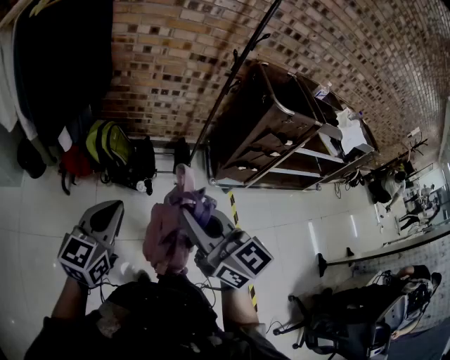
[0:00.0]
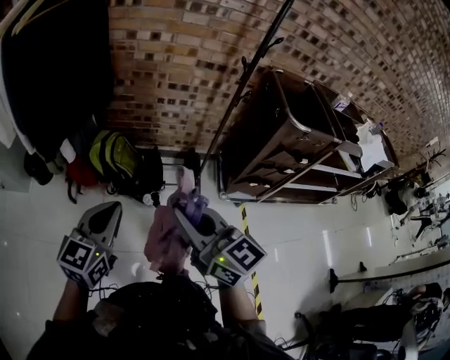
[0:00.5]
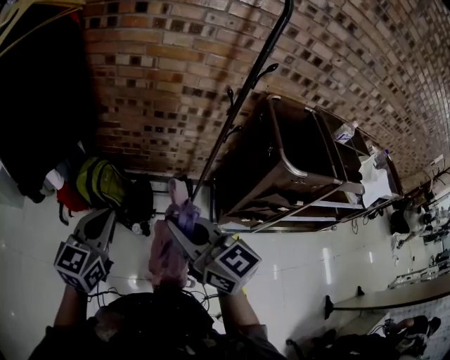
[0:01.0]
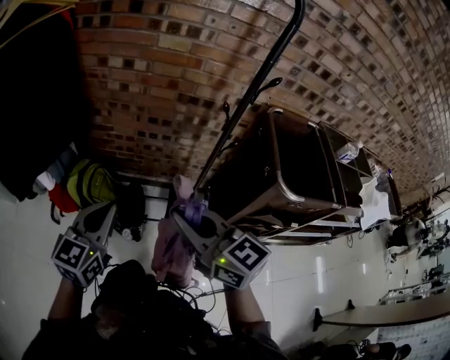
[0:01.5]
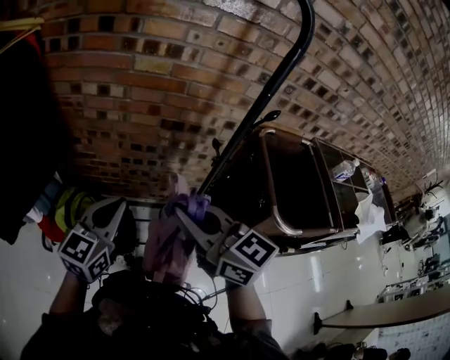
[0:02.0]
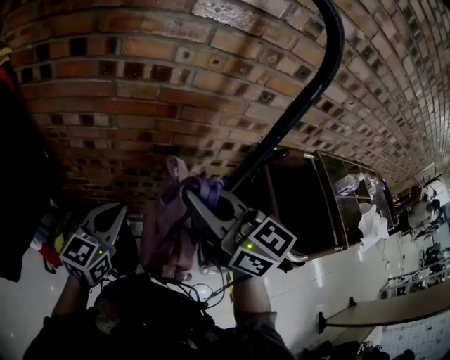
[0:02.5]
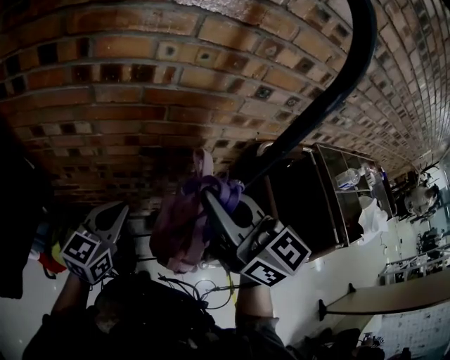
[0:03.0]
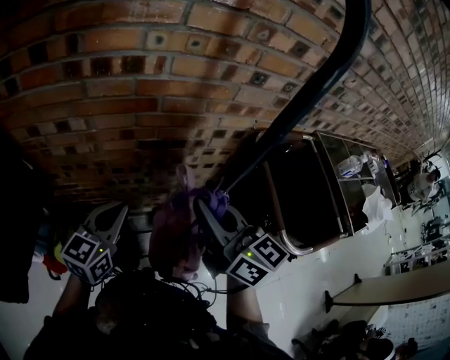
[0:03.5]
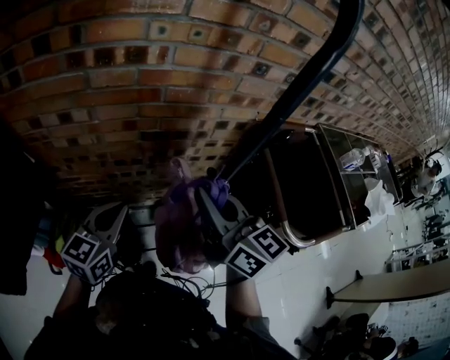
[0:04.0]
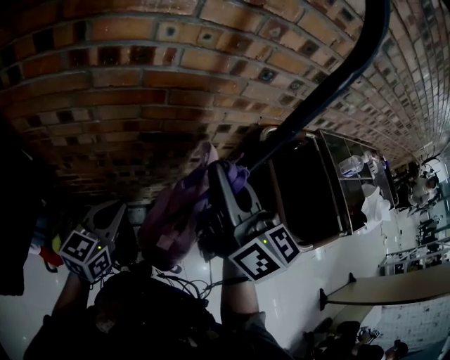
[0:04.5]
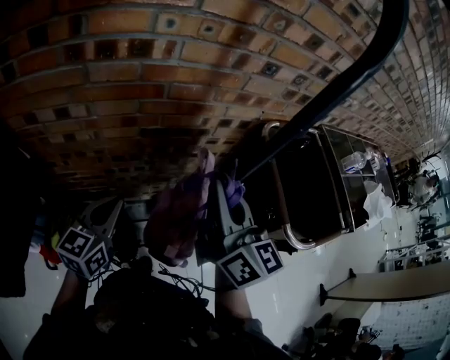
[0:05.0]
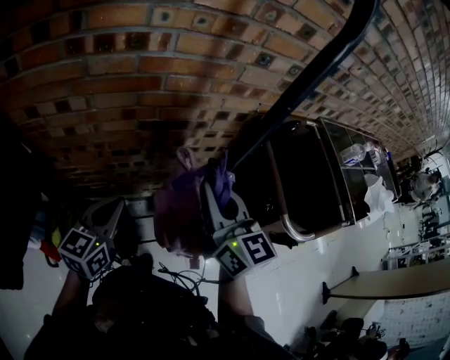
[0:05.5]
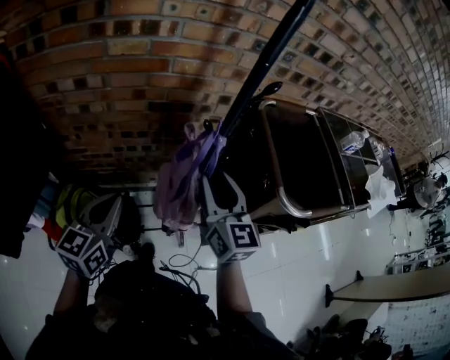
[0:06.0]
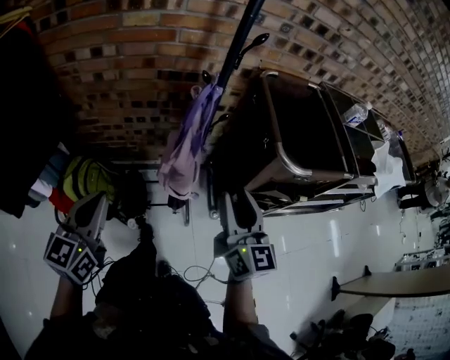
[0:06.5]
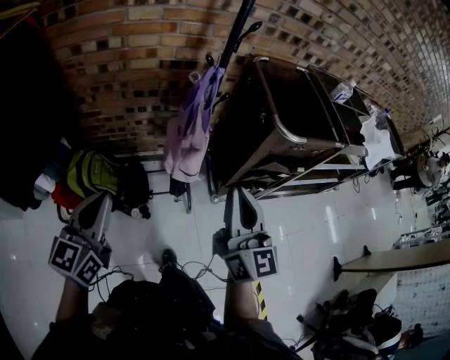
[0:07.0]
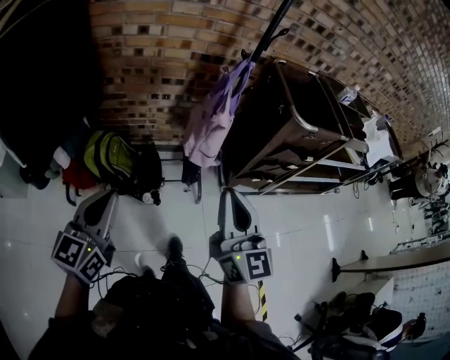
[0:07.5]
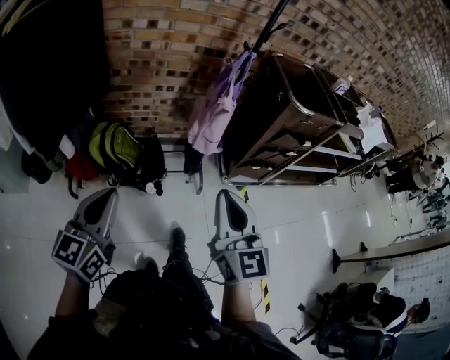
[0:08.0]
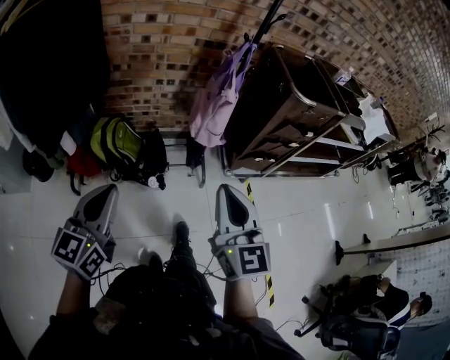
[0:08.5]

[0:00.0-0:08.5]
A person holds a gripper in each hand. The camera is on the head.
0:00.0 to 0:02.0: The two grippers travel together, forward and to the right, roughly 60 cm.
0:02.0 to 0:04.0: The right gripper shifts roughly 20 cm forward and to the right, and turns by some 30 degrees; the left gripper goes about 15 cm forward.
0:04.0 to 0:06.5: The left gripper goes some 25 cm backward, while the right gripper is displaced backward and to the right by approximately 30 cm, turns by some 20 degrees, and opens.
0:06.5 to 0:08.5: The right gripper heads backward and to the left, covering approximately 40 cm, and closes, while the left gripper travels backward by approximately 35 cm.

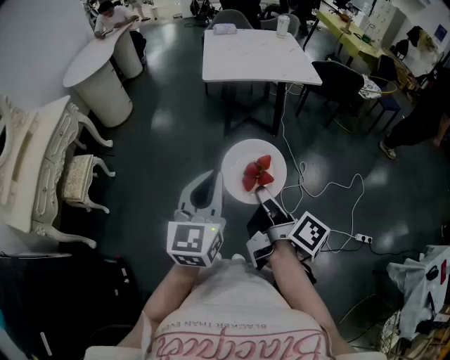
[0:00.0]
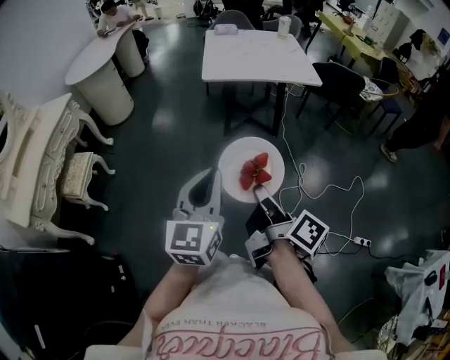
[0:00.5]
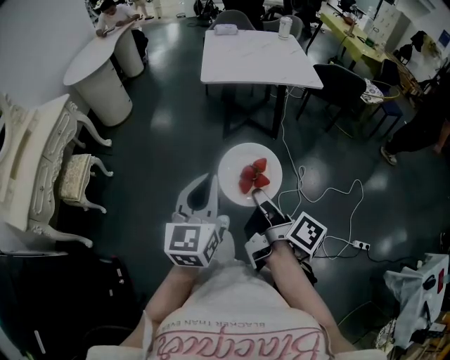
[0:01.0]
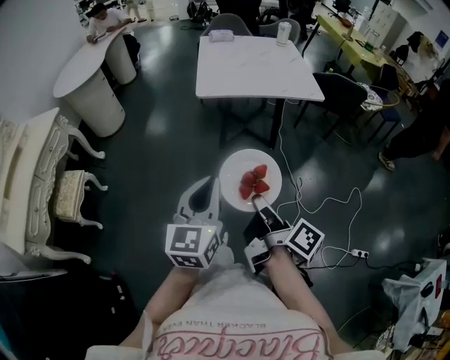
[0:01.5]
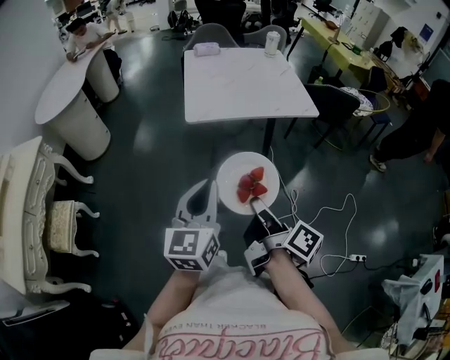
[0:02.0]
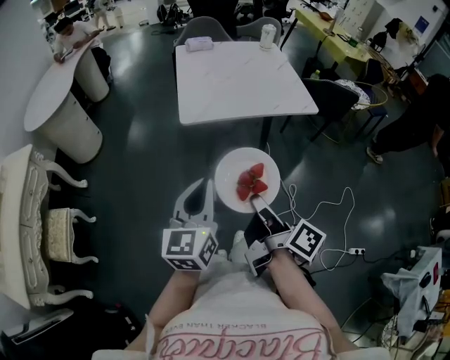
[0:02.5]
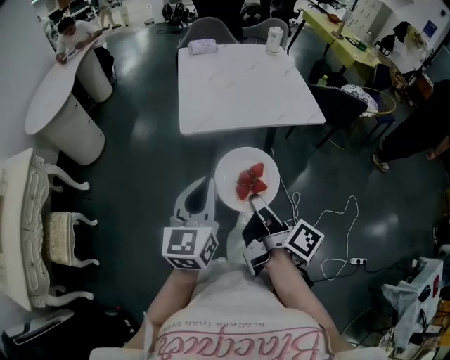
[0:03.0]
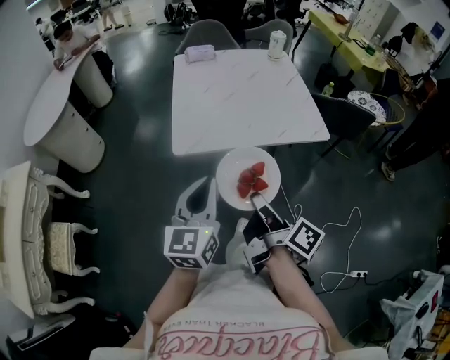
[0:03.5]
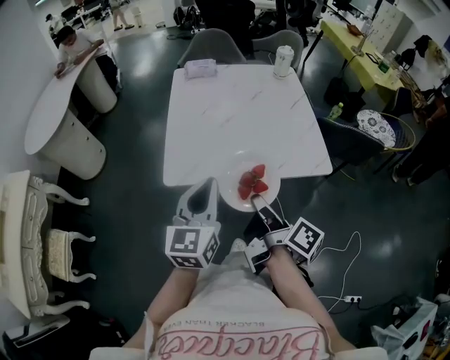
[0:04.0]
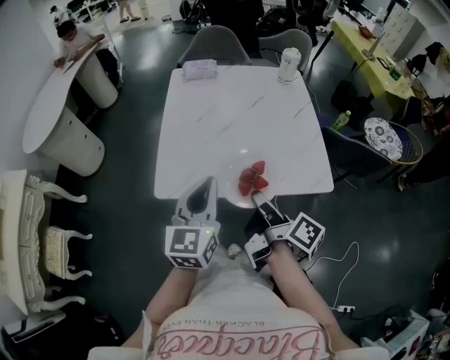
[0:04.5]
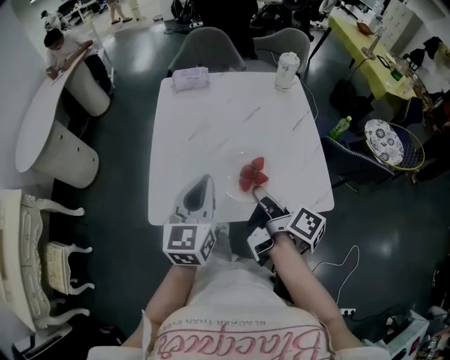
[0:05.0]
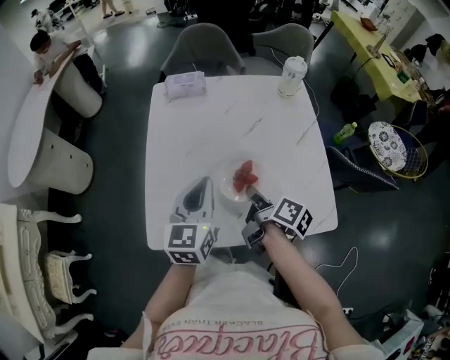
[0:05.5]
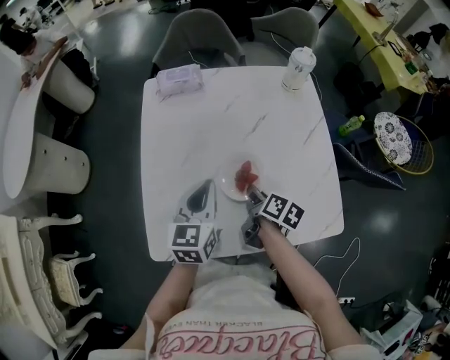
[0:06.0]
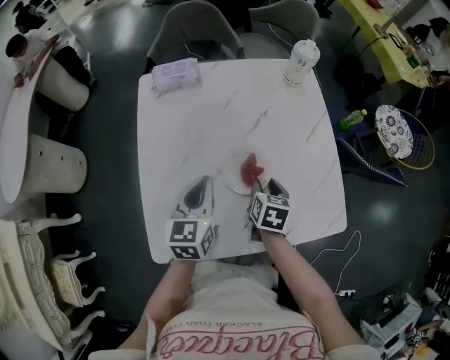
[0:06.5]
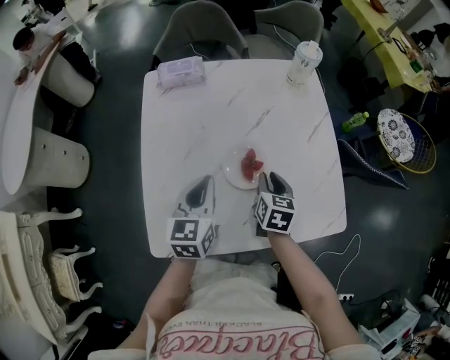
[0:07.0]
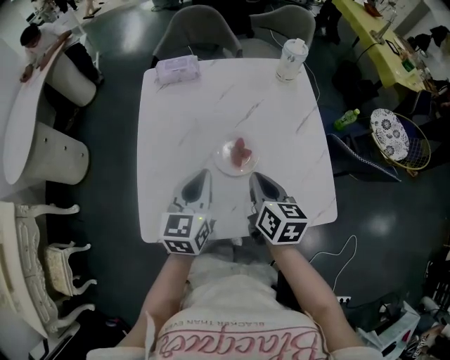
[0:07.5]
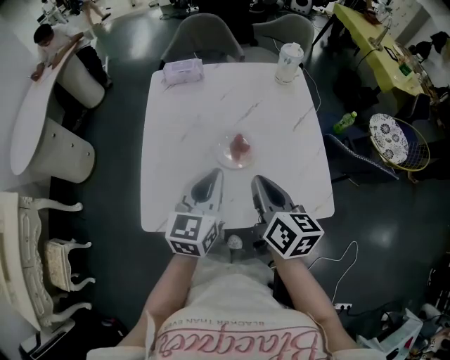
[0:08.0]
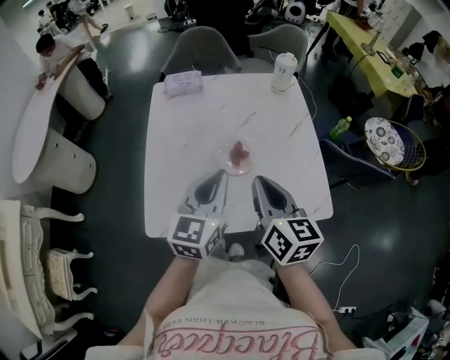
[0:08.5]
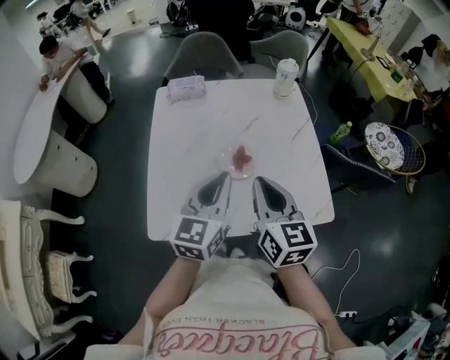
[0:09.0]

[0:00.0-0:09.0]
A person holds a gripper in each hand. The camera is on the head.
0:00.0 to 0:02.0: The grippers both shift forward by roughly 25 cm.
0:02.0 to 0:04.5: The pair of grippers is taken forward, about 50 cm.
0:04.5 to 0:07.0: Both grippers move forward and downward, approximately 35 cm. The right gripper twists approximately 60 degrees counterclockwise, seen from behind.
0:07.0 to 0:09.0: The left gripper shifts roughly 20 cm upward, backward and to the right, while the right gripper shifts approximately 25 cm upward and backward, and swivels some 30 degrees.

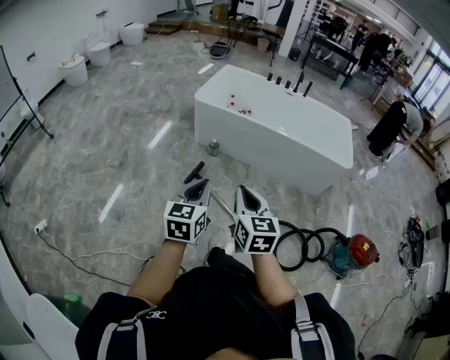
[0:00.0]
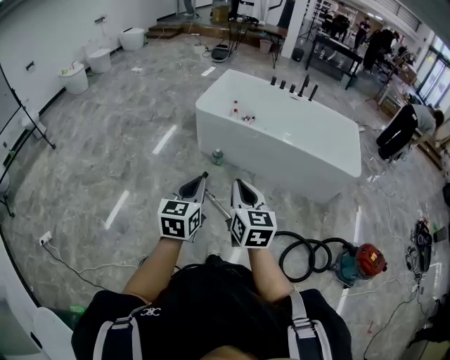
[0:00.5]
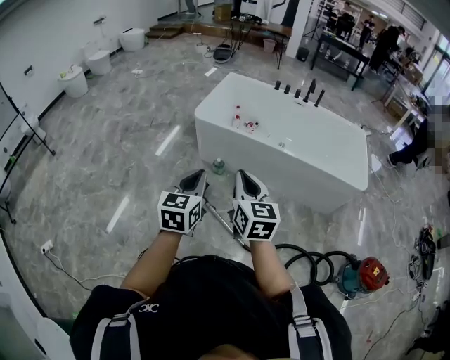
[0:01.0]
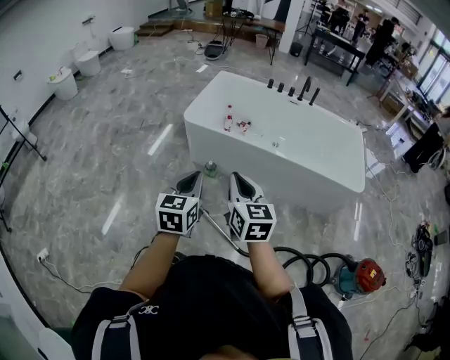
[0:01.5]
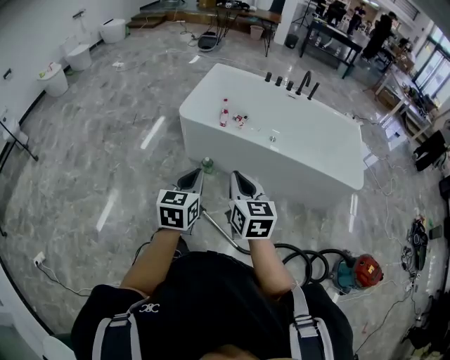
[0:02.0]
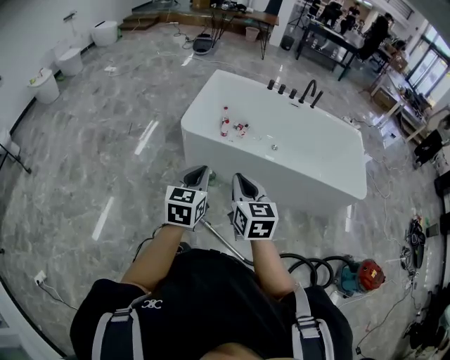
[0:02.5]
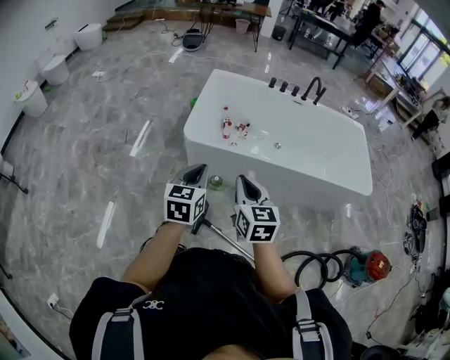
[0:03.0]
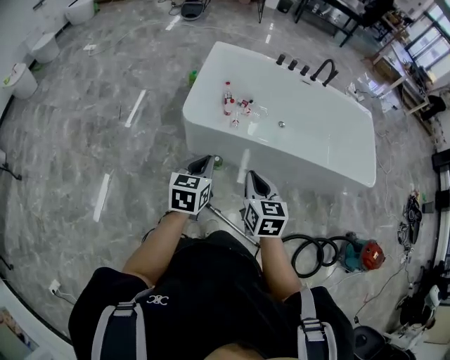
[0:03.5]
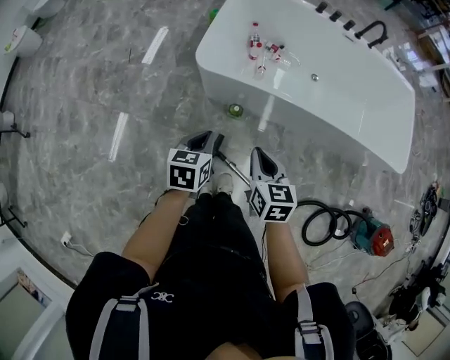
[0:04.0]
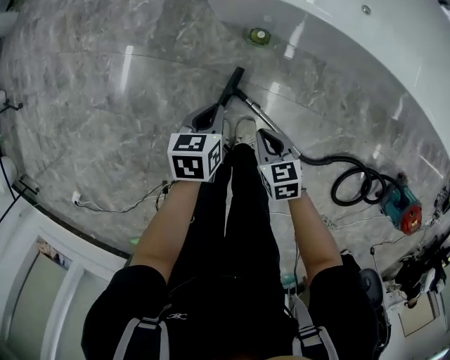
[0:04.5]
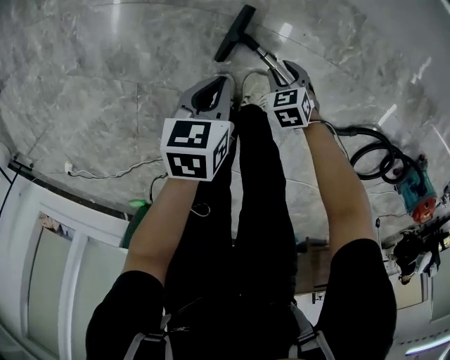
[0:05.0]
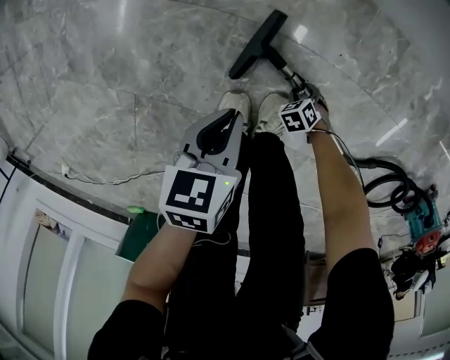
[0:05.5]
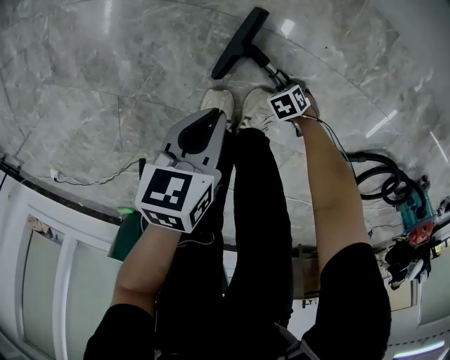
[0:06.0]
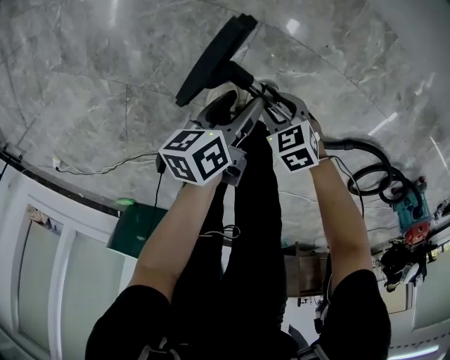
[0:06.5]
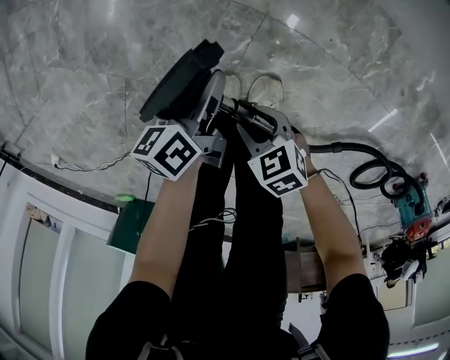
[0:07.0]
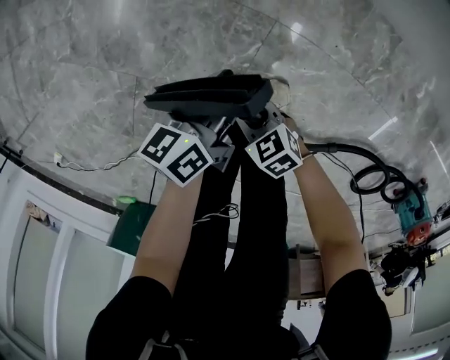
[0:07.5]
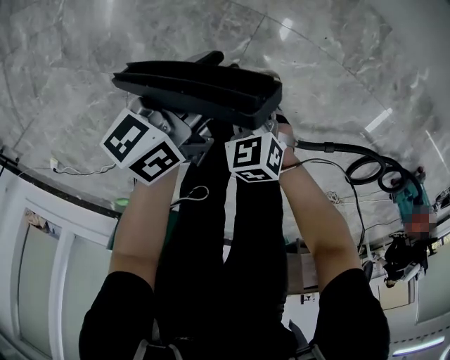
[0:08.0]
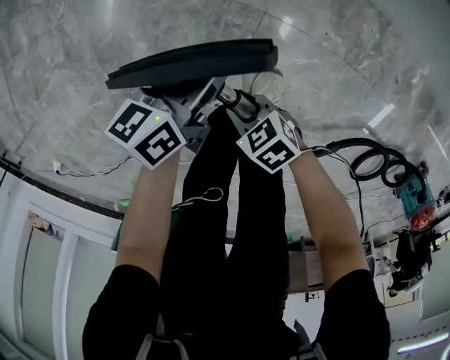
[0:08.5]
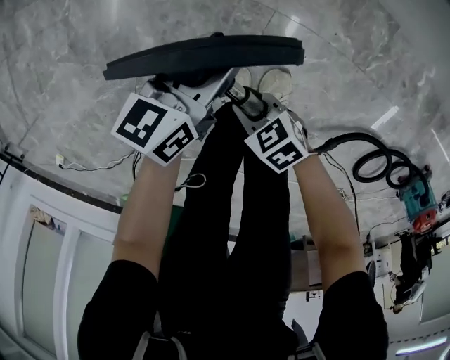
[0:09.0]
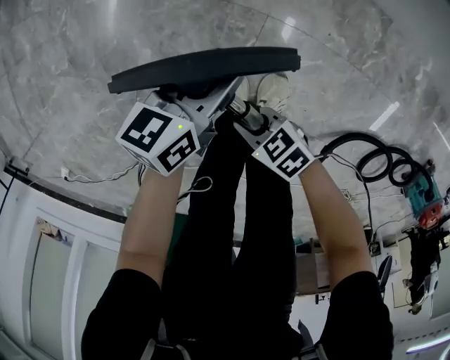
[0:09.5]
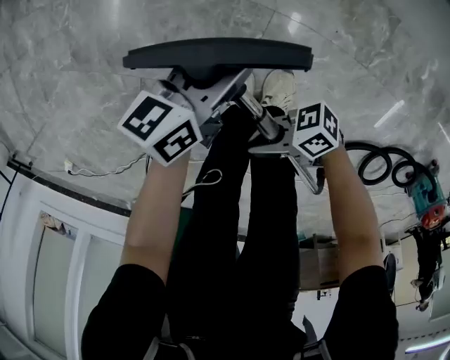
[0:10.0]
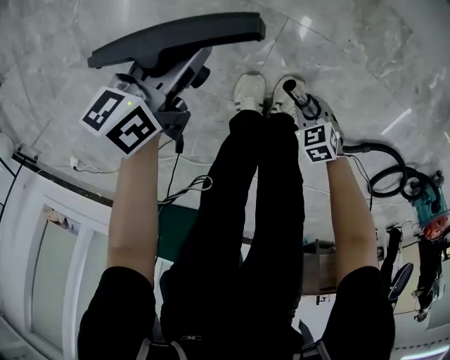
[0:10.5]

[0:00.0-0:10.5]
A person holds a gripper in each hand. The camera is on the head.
0:00.0 to 0:02.0: Both grippers move forward, roughly 35 cm.
0:02.0 to 0:04.0: The grippers both shift forward, downward and to the left by some 40 cm. The right gripper swivels approximately 20 degrees; the left gripper turns by about 30 degrees.
0:04.0 to 0:06.5: Both grippers move downward, about 60 cm. The right gripper rotates about 60 degrees, and opens. Meanwhile the left gripper rolls counterclockwise, seen from behind, by roughly 50 degrees, and opens its fingers.
0:06.5 to 0:08.5: The left gripper ends up some 15 cm from where it was, rotates approximately 30 degrees, and closes; the right gripper changes place by about 15 cm, and closes its fingers.
0:08.5 to 0:10.5: The right gripper moves some 15 cm, and turns by approximately 30 degrees; the left gripper ends up some 10 cm from where it was.
